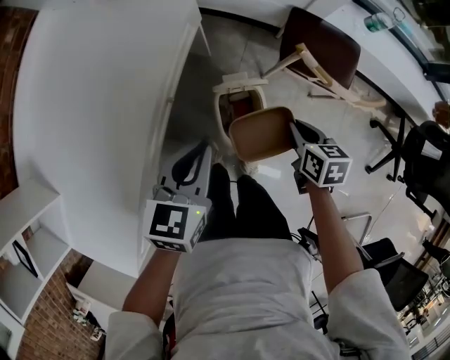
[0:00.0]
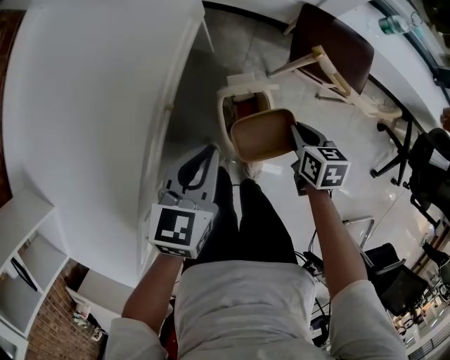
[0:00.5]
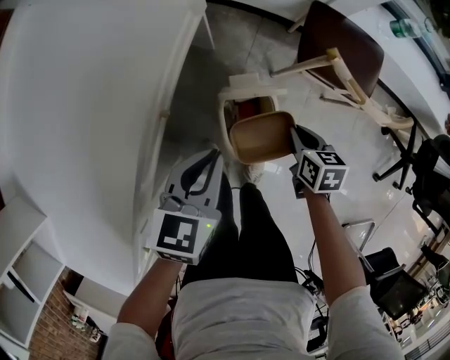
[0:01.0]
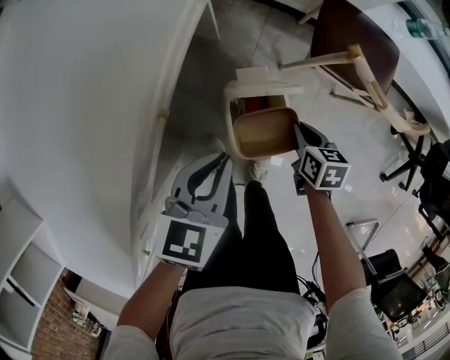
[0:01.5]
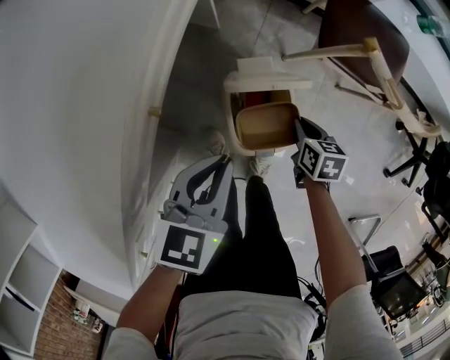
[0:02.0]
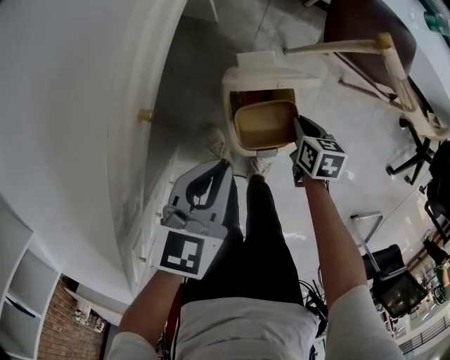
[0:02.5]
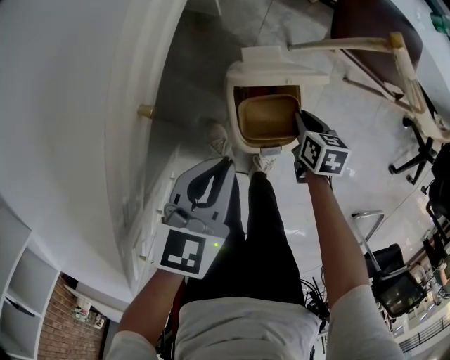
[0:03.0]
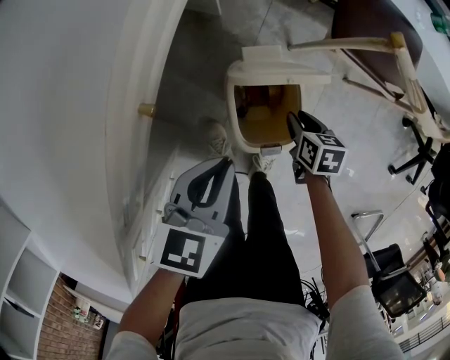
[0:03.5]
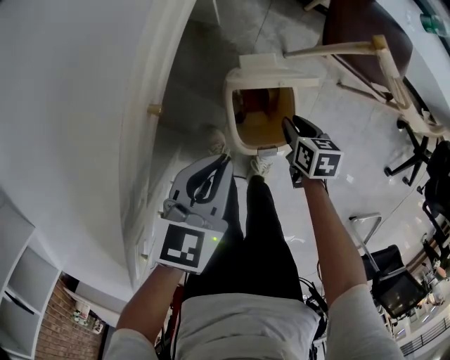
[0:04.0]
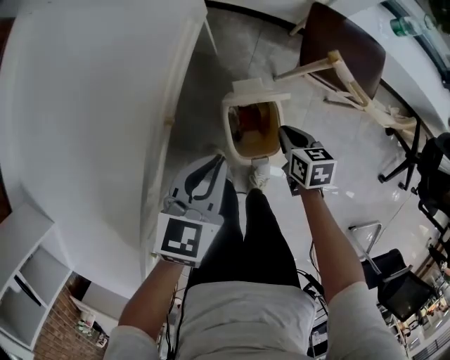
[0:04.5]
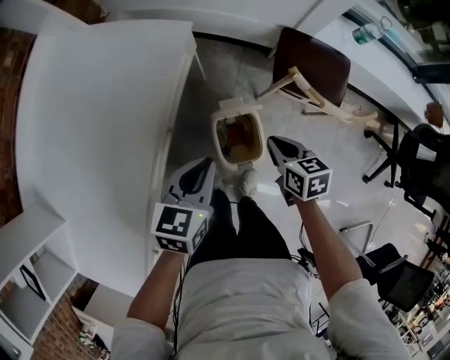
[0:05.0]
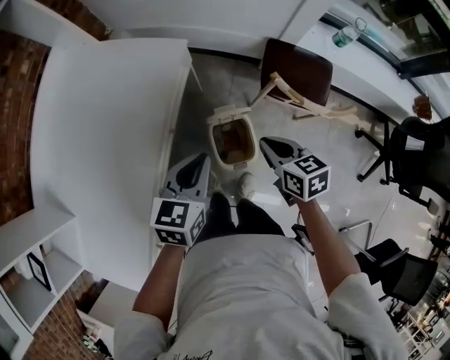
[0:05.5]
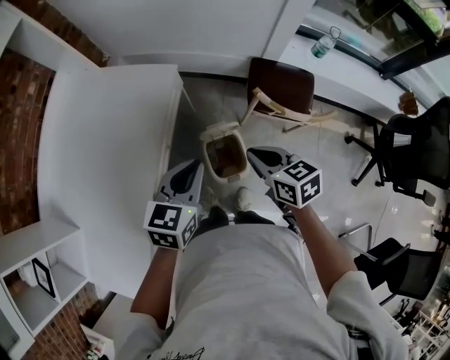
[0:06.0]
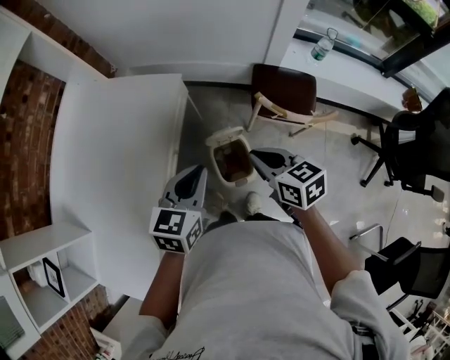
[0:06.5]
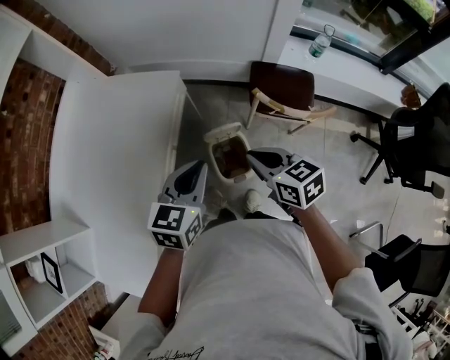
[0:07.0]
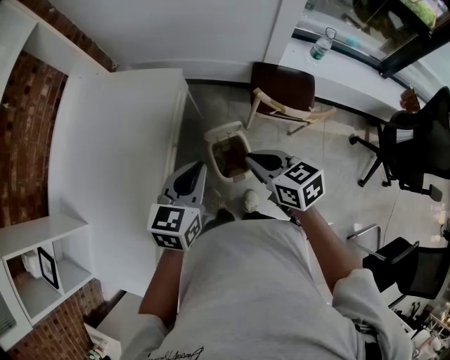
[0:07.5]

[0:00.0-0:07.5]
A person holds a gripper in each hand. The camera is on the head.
0:00.0 to 0:02.0: Both grippers travel together downward, approximately 20 cm.
0:02.0 to 0:04.0: The grippers make only small movements.
0:04.0 to 0:05.5: The right gripper travels upward by roughly 35 cm, and swivels approximately 30 degrees. Meanwhile the left gripper moves upward, approximately 25 cm.
0:05.5 to 0:07.5: The left gripper is displaced upward by about 10 cm. The right gripper moves upward and backward, roughly 10 cm.

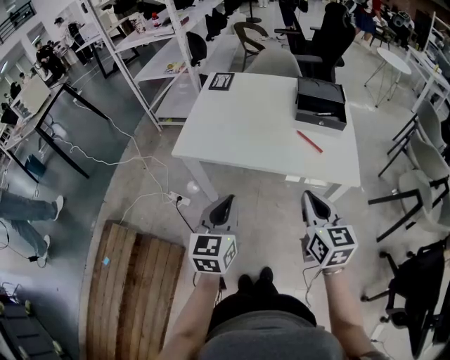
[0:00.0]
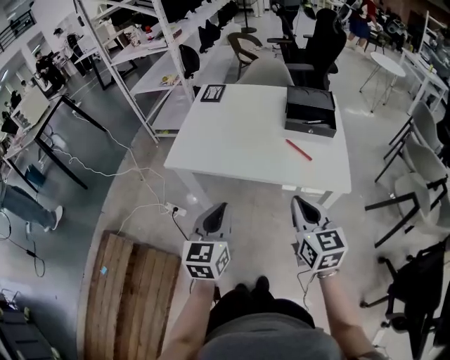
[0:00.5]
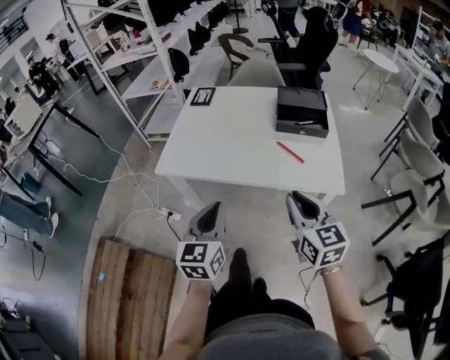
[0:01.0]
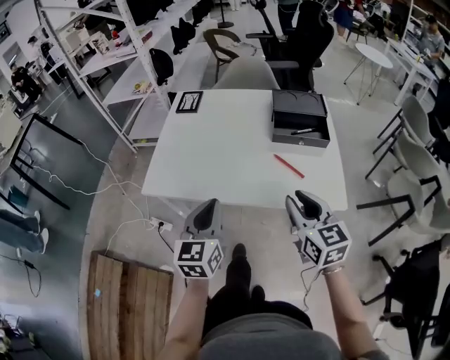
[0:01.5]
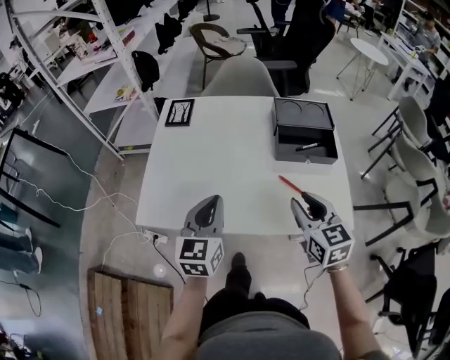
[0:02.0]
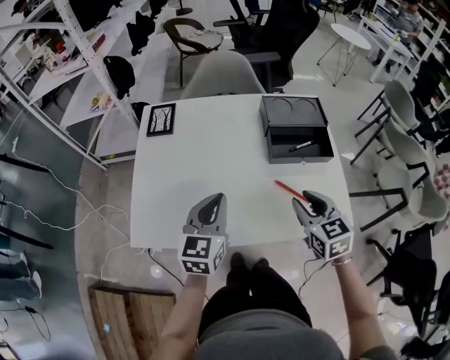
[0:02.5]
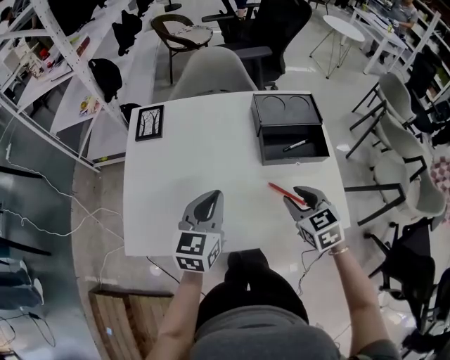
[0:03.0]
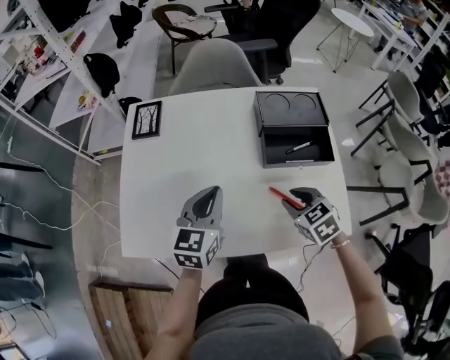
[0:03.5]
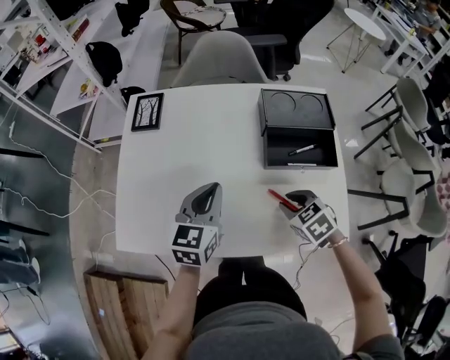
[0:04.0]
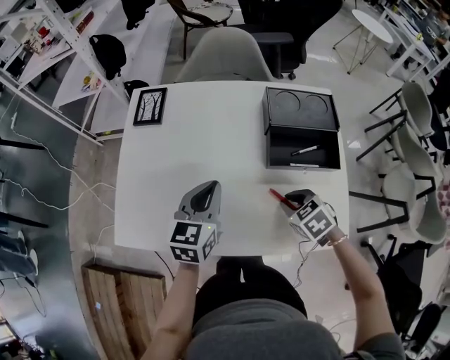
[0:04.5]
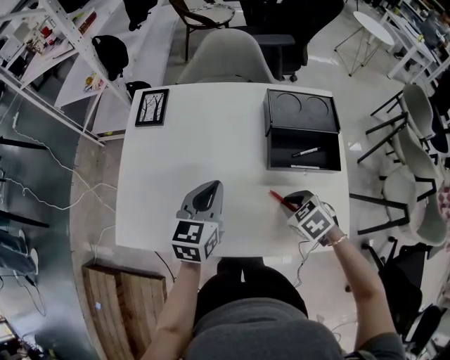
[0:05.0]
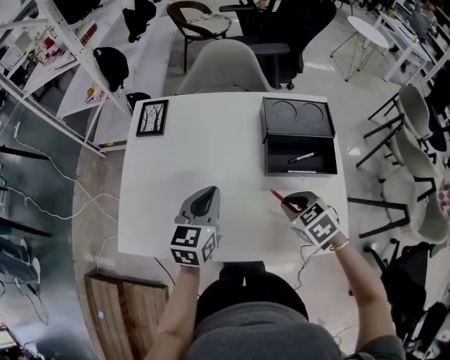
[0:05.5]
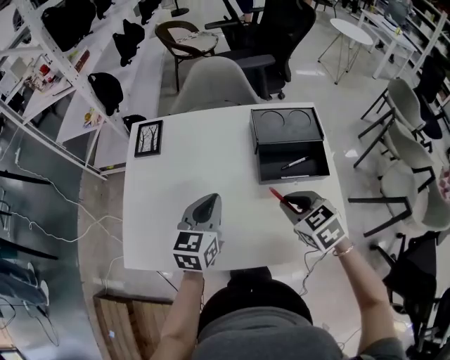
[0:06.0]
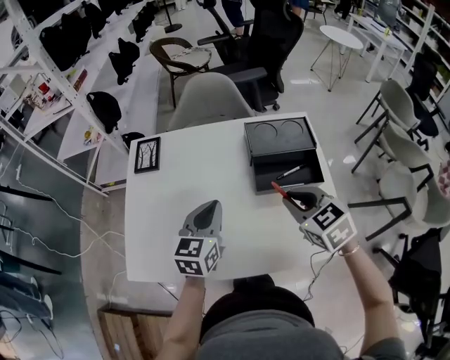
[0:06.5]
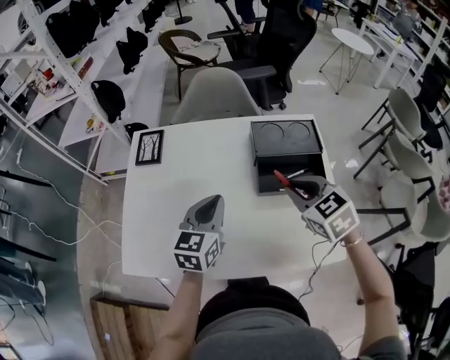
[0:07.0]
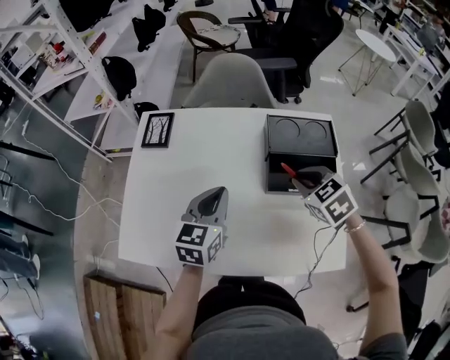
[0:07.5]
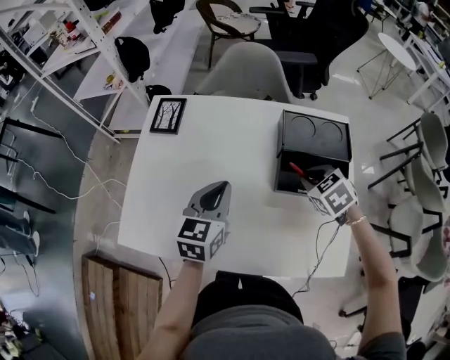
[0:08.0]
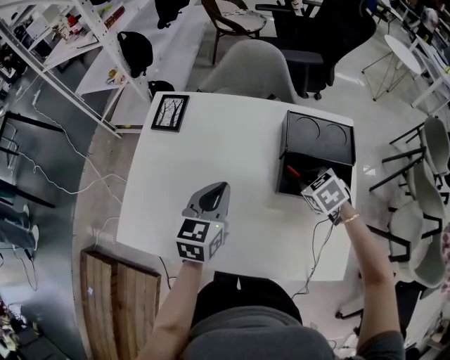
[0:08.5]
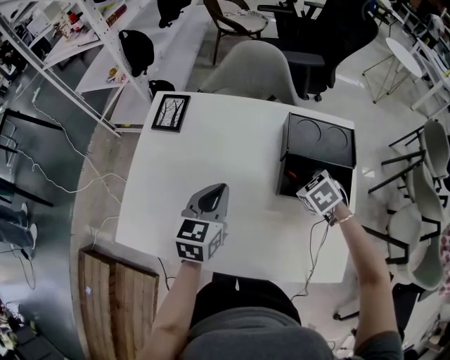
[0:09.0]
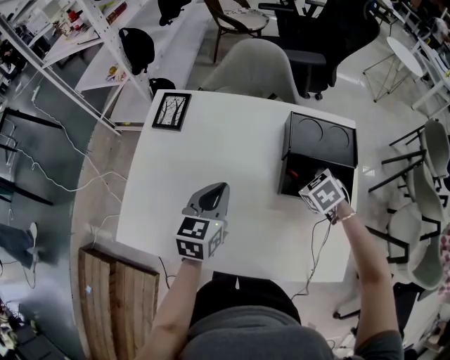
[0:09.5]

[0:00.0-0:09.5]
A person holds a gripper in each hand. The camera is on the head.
0:00.0 to 0:02.0: Both grippers move forward, some 25 cm. The right gripper opens.
0:02.0 to 0:04.0: The right gripper goes roughly 15 cm downward and forward, and angles its fingers downward, by about 40 degrees. The left gripper goes approximately 15 cm forward and to the right.
0:04.0 to 0:05.5: There are only small adjustments of the grippers.
0:05.5 to 0:07.5: The left gripper shifts by about 5 cm. The right gripper heads forward and upward, covering approximately 15 cm.
0:07.5 to 0:09.5: The right gripper goes roughly 10 cm downward.

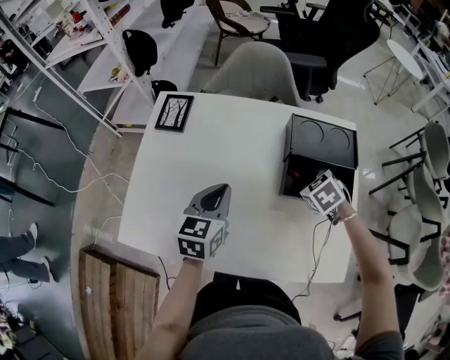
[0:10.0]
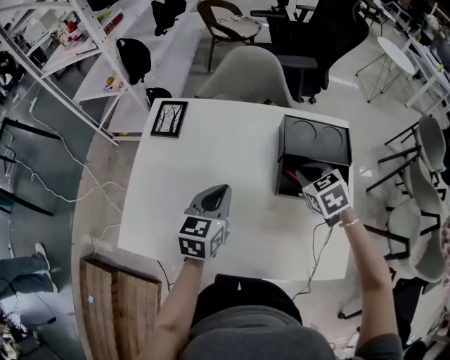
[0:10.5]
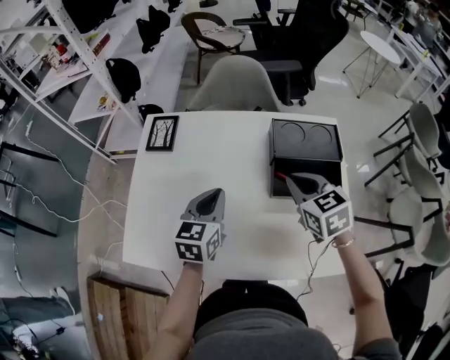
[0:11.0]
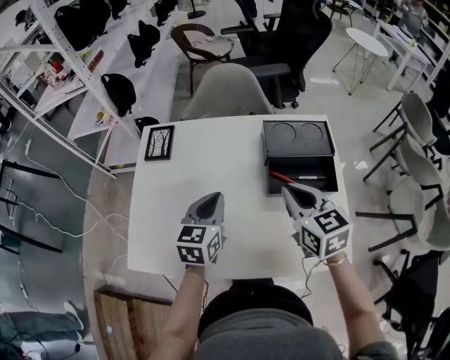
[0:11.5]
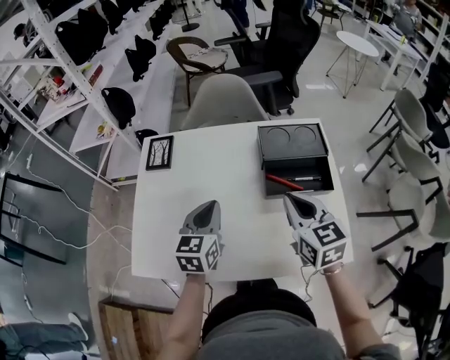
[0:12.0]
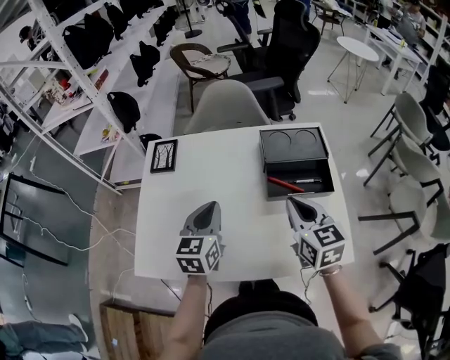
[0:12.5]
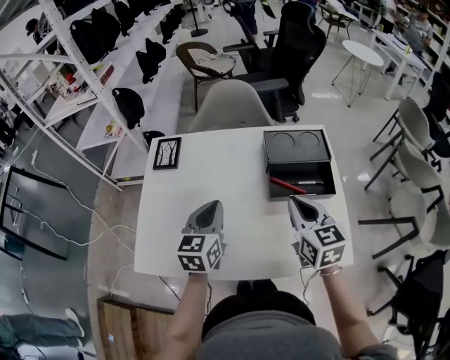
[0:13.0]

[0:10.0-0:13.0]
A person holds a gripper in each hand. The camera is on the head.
0:10.0 to 0:11.5: The right gripper is displaced upward and backward by some 20 cm, and angles its fingers upward, by approximately 40 degrees.
0:11.5 to 0:13.0: There are only small adjustments of the grippers.

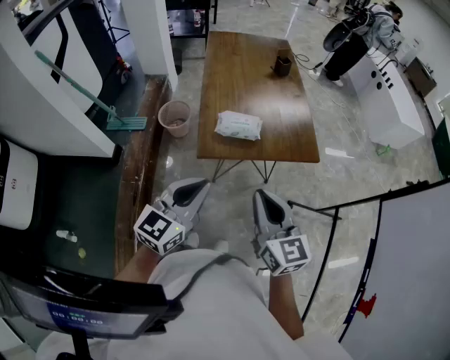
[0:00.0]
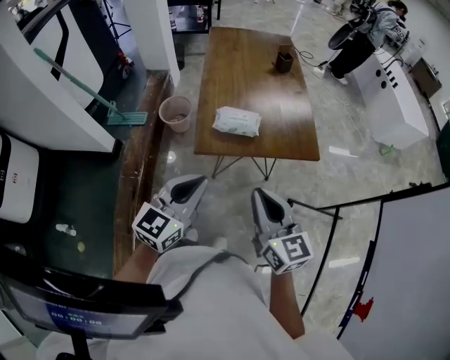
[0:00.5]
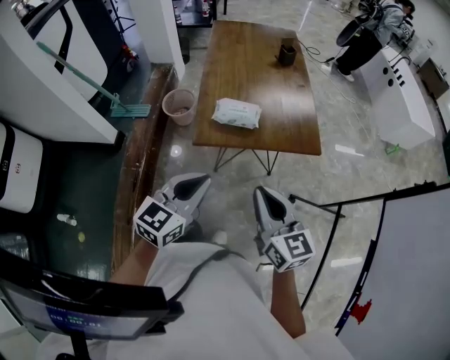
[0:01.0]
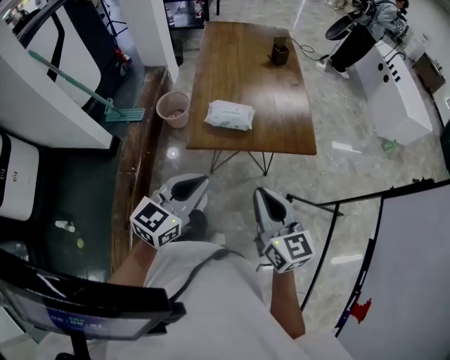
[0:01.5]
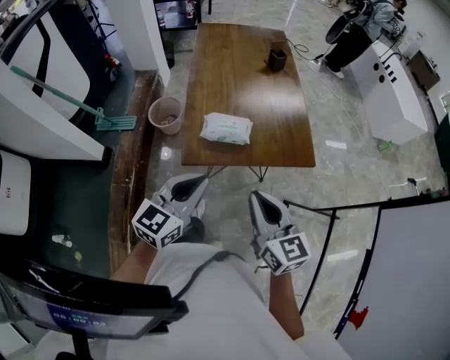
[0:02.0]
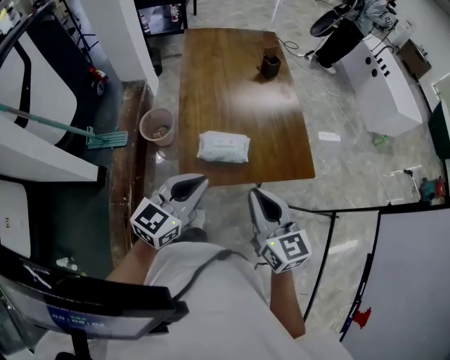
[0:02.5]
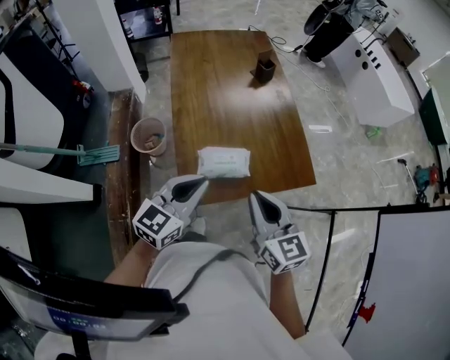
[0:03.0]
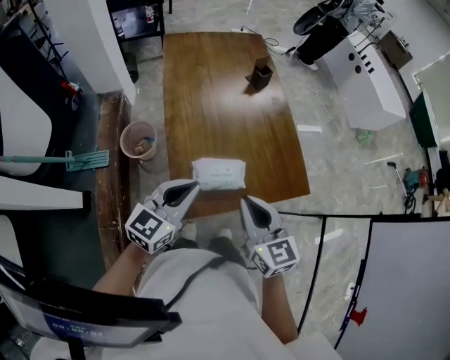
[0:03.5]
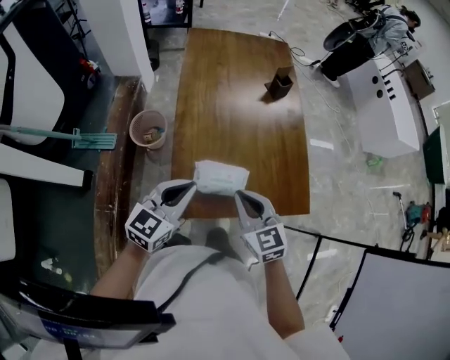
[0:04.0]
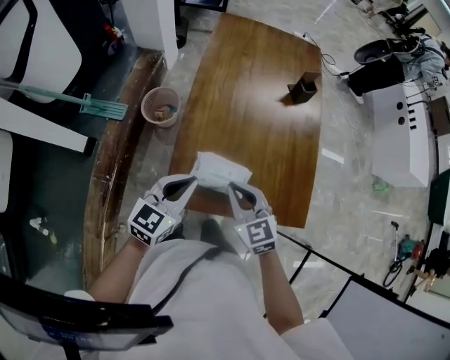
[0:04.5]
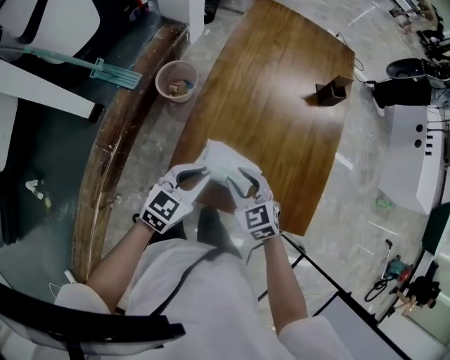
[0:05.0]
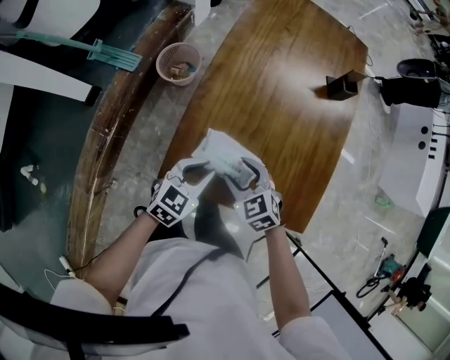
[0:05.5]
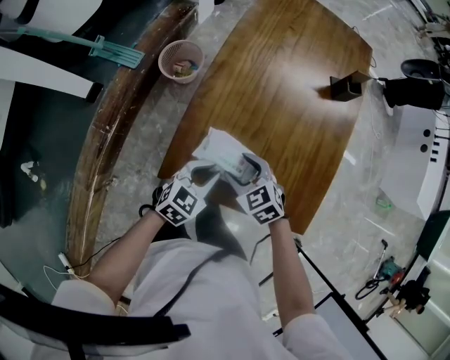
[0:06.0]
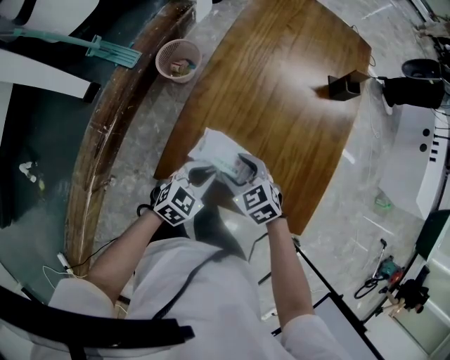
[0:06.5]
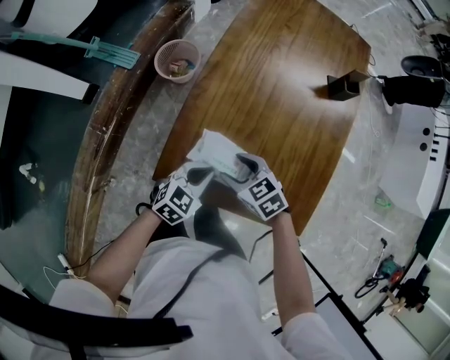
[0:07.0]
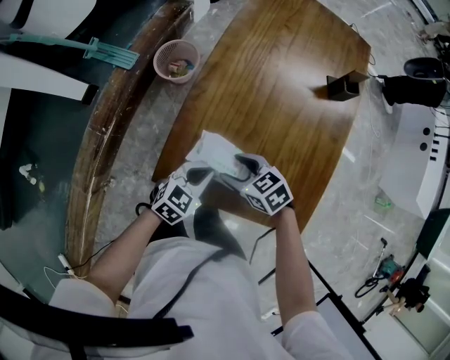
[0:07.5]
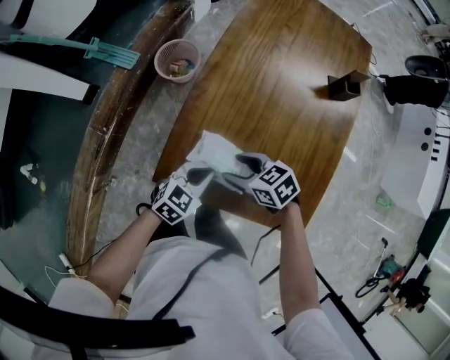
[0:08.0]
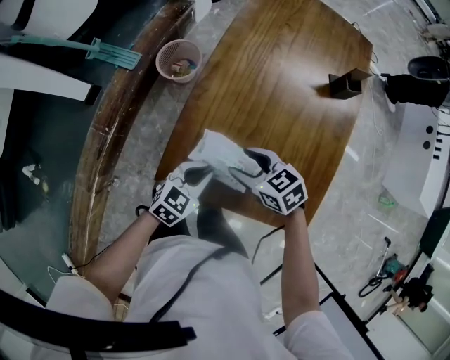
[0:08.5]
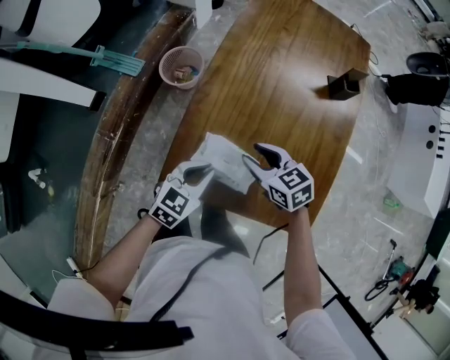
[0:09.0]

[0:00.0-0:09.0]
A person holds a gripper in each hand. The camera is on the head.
0:00.0 to 0:02.0: Both grippers move forward, about 10 cm.
0:02.0 to 0:04.5: The right gripper heads forward and downward, covering some 30 cm, and rotates some 30 degrees; the left gripper moves forward, roughly 25 cm.
0:04.5 to 0:07.0: Both grippers move downward, approximately 15 cm. The right gripper swivels about 40 degrees, and opens.
0:07.0 to 0:09.0: The right gripper moves roughly 10 cm; the left gripper changes place by approximately 5 cm.
